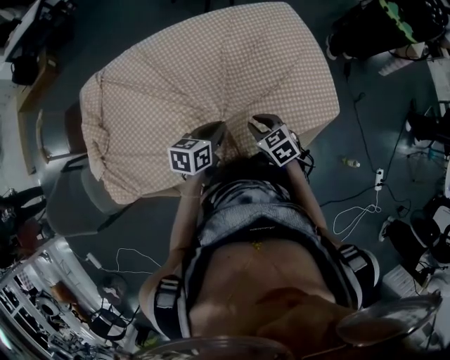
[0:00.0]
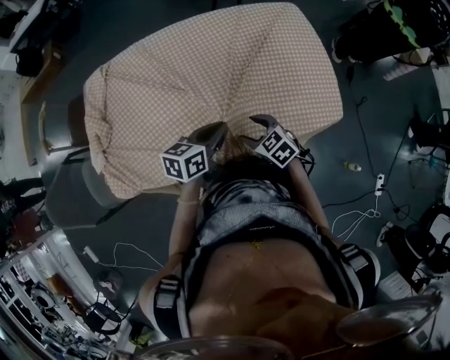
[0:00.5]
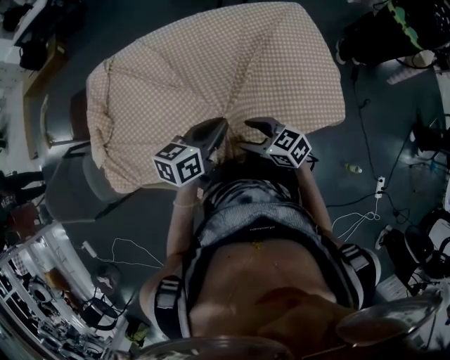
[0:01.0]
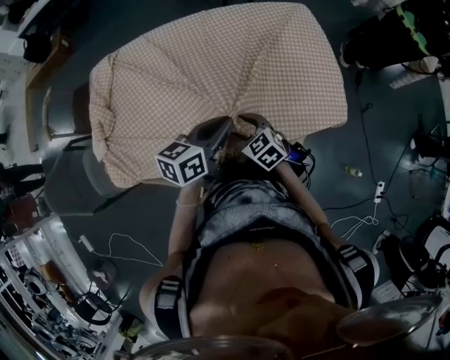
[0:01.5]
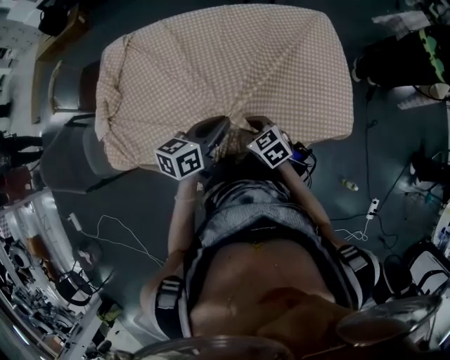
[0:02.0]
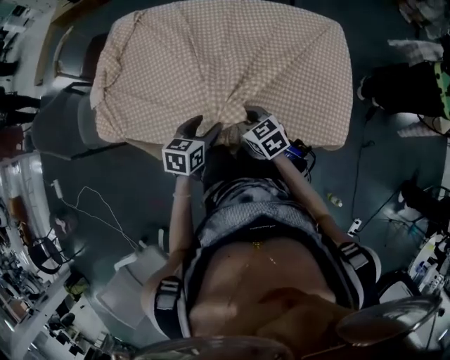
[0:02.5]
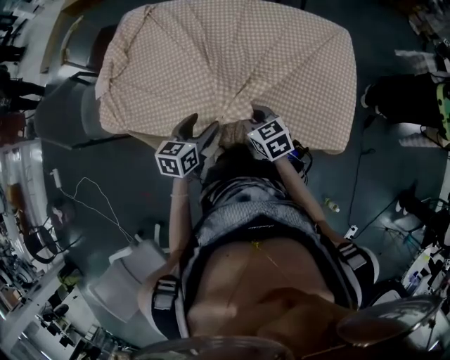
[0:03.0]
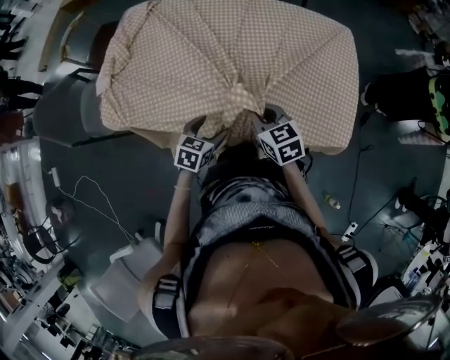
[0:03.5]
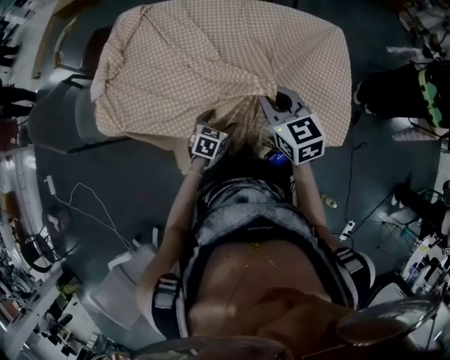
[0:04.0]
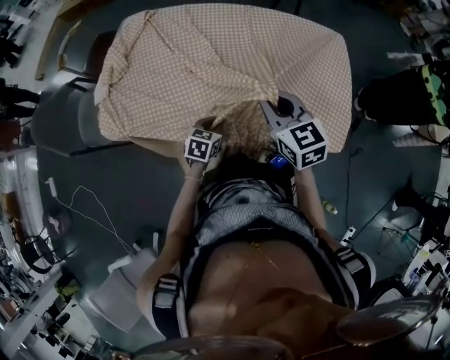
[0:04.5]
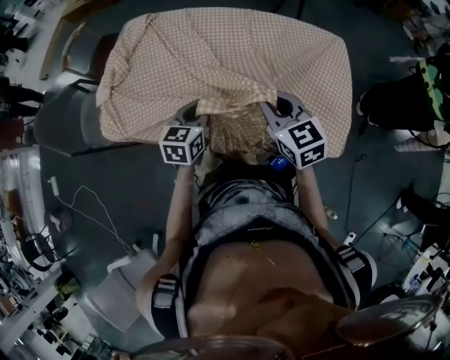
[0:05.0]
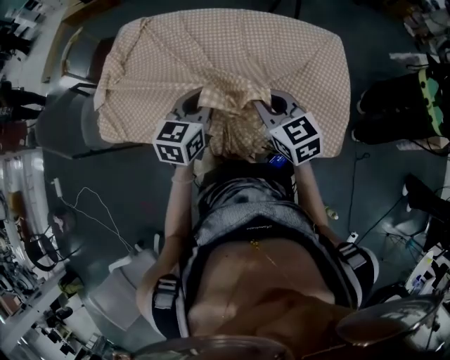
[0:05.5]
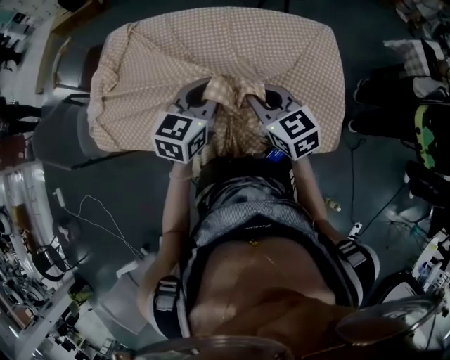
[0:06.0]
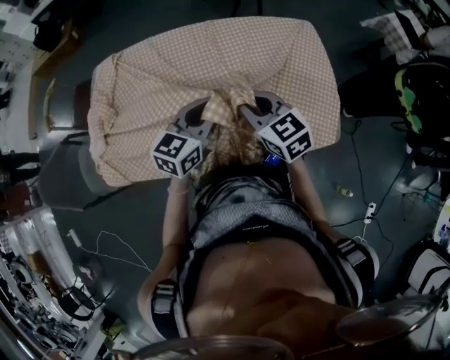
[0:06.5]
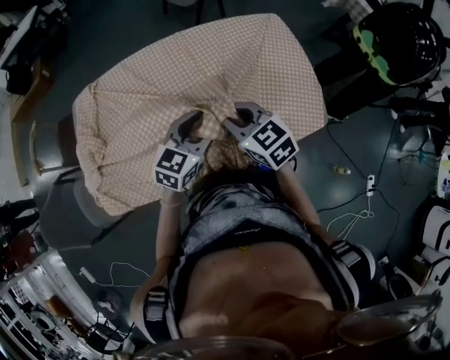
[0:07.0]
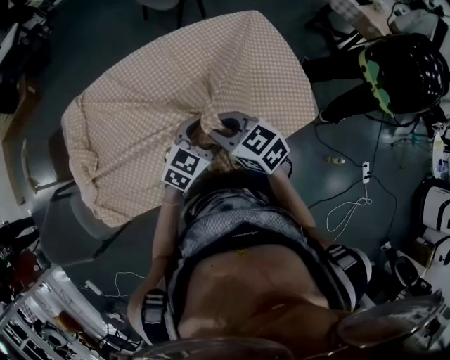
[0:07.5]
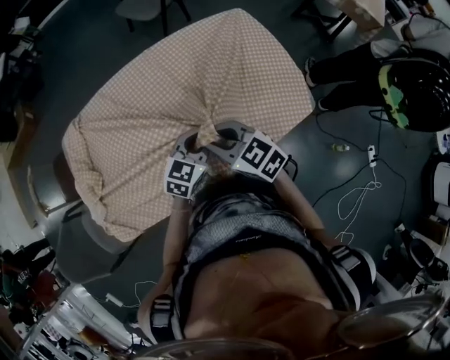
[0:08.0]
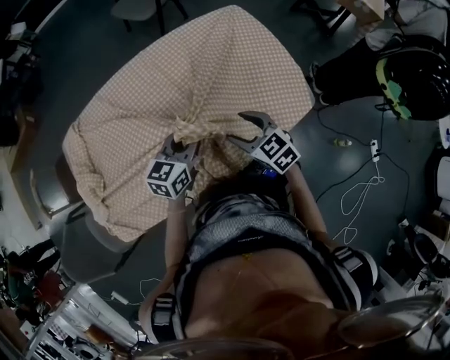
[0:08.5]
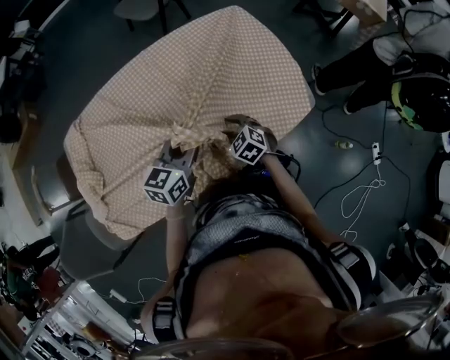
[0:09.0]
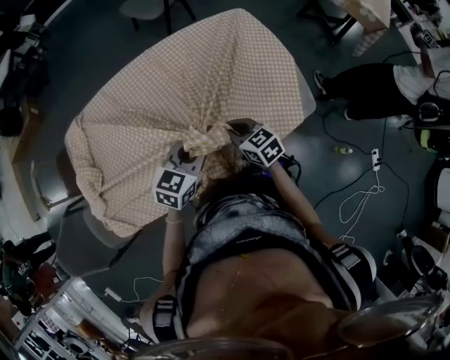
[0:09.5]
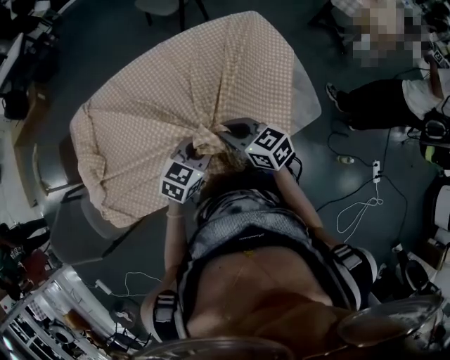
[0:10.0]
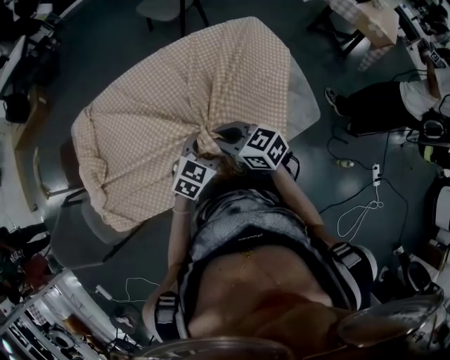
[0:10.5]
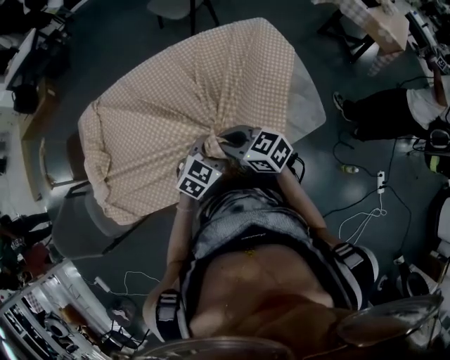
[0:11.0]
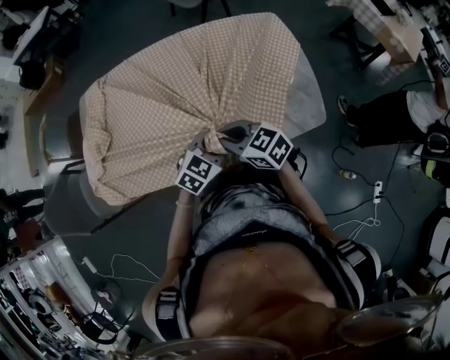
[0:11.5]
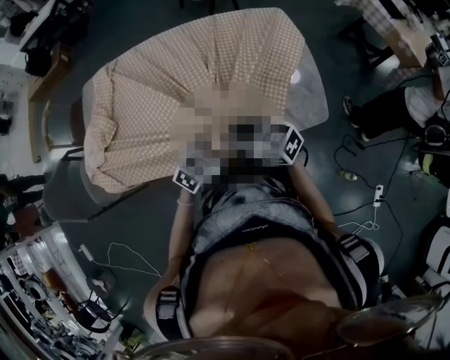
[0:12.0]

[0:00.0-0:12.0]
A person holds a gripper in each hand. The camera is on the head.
0:00.0 to 0:02.0: The left gripper goes about 5 cm upward; the right gripper travels to the left by about 5 cm, and opens, then closes once more.
0:02.0 to 0:04.0: The left gripper heads downward, covering some 20 cm, changes its angle by roughly 40 degrees, and opens up, while the right gripper travels upward by some 15 cm.
0:04.0 to 0:06.0: The left gripper is displaced upward and forward by some 30 cm, rotates about 30 degrees, and closes.
0:06.0 to 0:08.0: The left gripper shifts roughly 10 cm downward, changes its angle by approximately 40 degrees, and opens and closes again. Meanwhile the right gripper goes some 5 cm to the left.
0:08.0 to 0:10.0: The right gripper heads to the right, covering roughly 5 cm, goes downward and returns, approximately 20 cm each way, and opens, then closes once more.
0:10.0 to 0:12.0: The left gripper moves some 10 cm, and opens and closes again; the right gripper ends up approximately 10 cm from where it was, and turns by roughly 30 degrees.

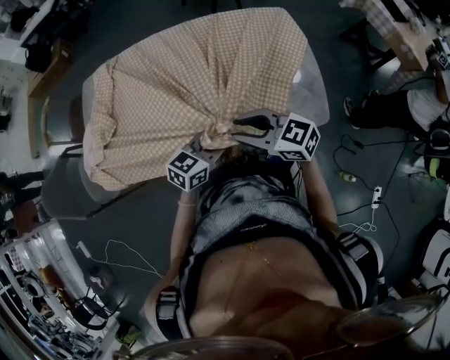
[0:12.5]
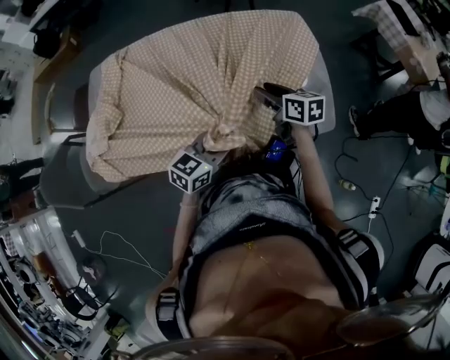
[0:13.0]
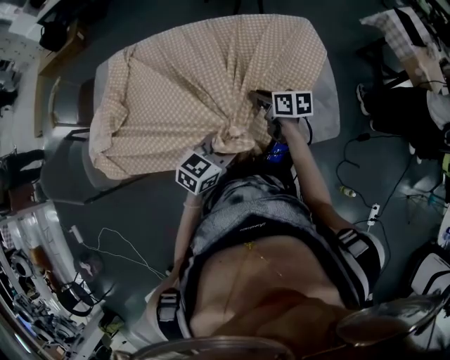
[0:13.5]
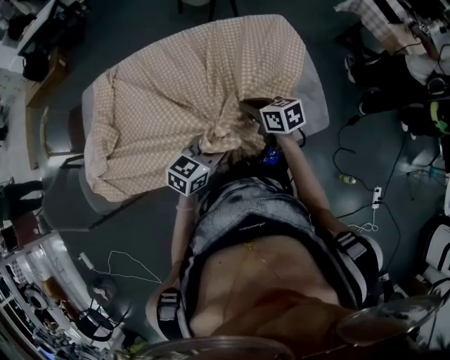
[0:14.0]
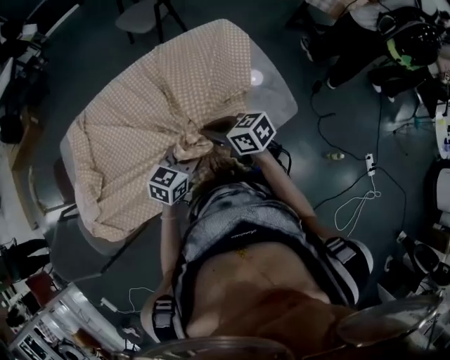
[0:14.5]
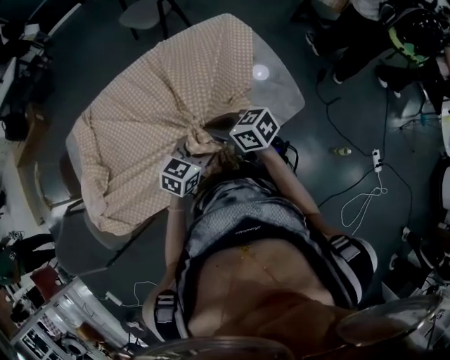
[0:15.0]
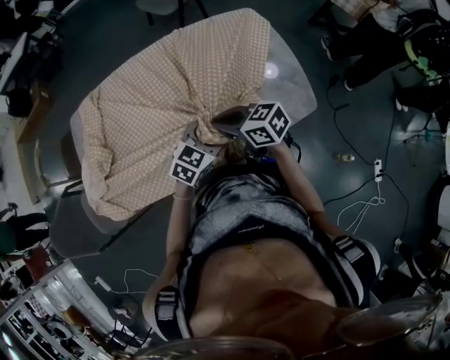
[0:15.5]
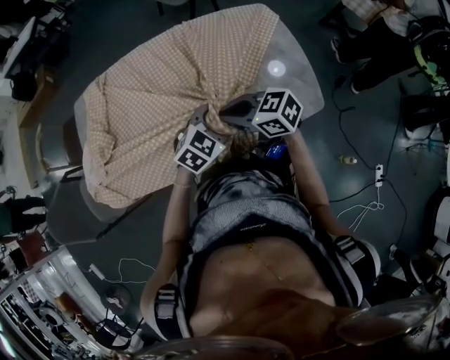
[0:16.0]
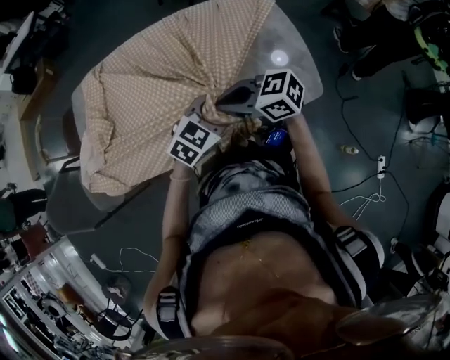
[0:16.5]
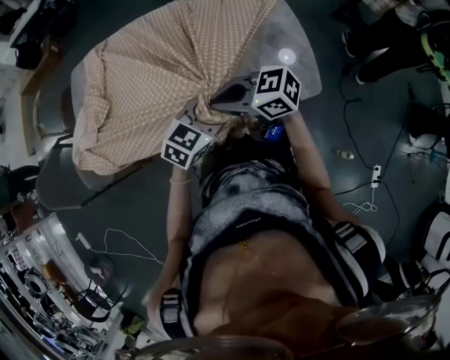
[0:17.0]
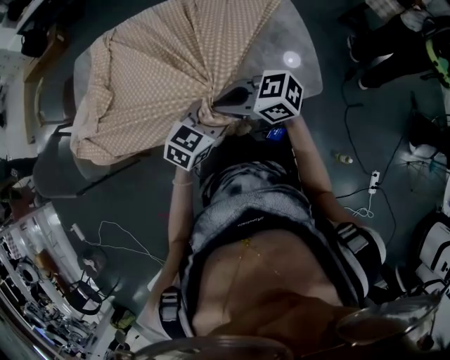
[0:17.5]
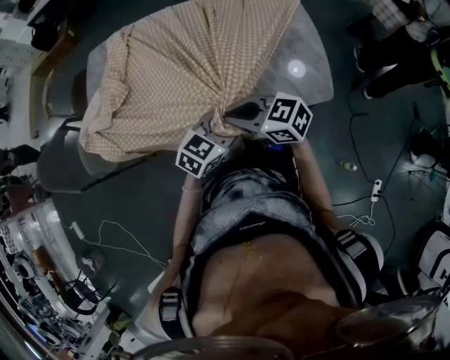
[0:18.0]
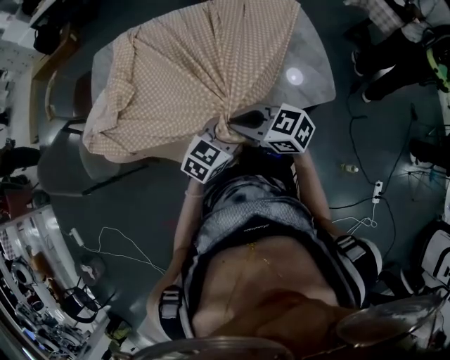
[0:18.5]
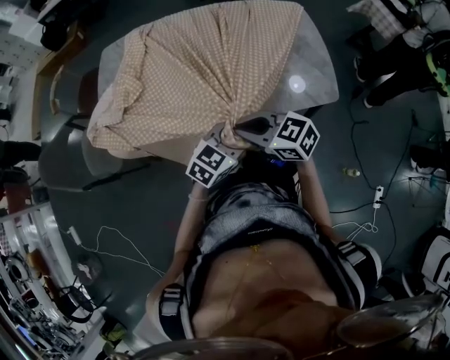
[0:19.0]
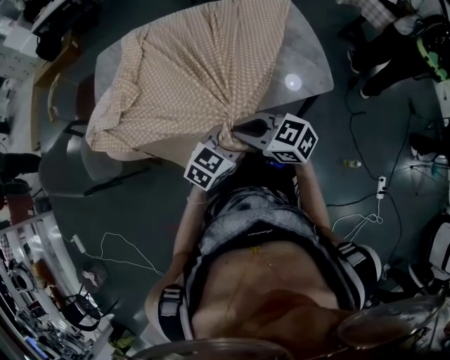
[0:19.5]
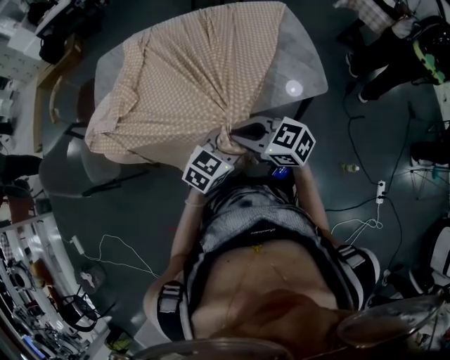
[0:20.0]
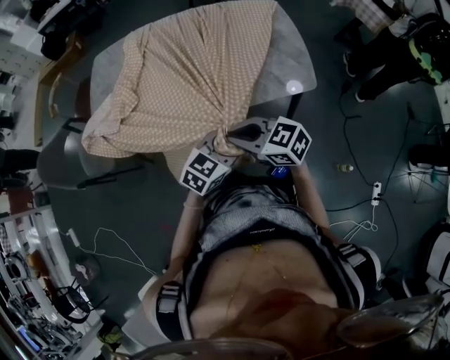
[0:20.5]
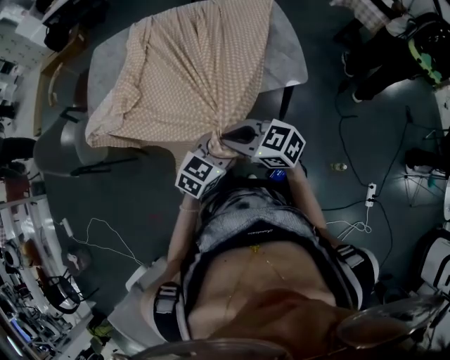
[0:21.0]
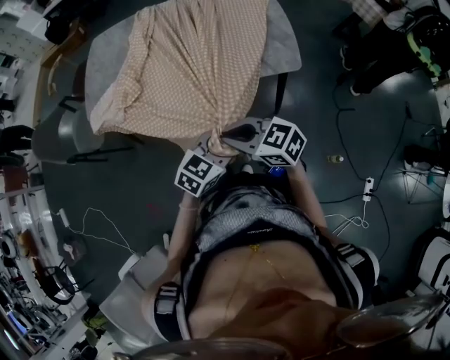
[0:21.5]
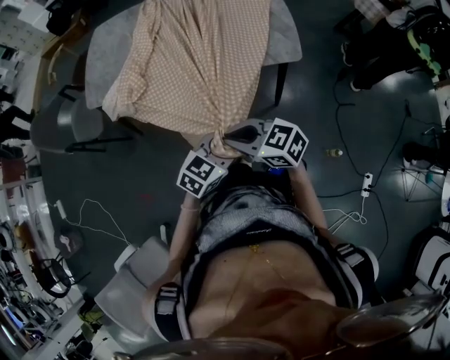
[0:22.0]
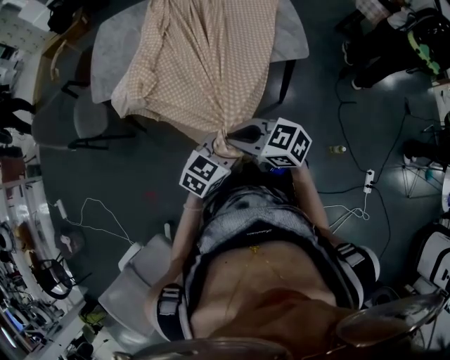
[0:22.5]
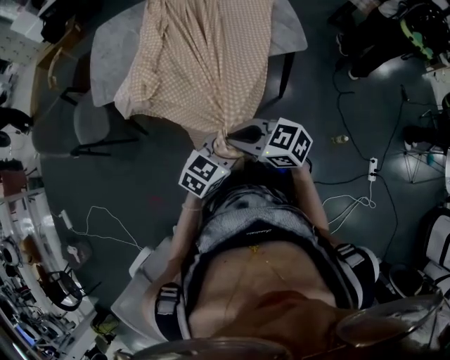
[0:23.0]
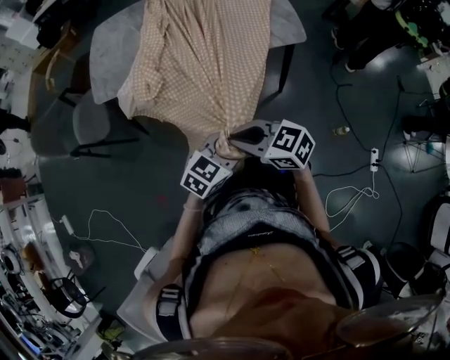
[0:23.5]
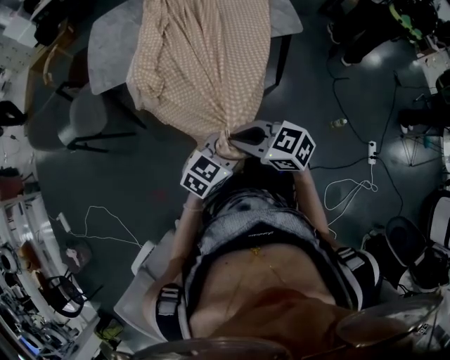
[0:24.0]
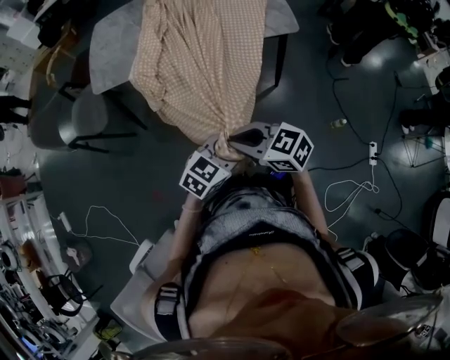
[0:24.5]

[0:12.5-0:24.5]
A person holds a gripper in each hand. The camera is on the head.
0:12.5 to 0:14.5: The right gripper turns by roughly 30 degrees.
0:14.5 to 0:16.5: The left gripper shifts by some 5 cm. Meanwhile the right gripper moves some 10 cm, and changes its angle by about 30 degrees.
0:16.5 to 0:18.5: The right gripper shifts by approximately 15 cm, while the left gripper ends up roughly 15 cm from where it was.
0:18.5 to 0:20.5: The left gripper moves some 15 cm, while the right gripper changes place by some 15 cm.
0:20.5 to 0:22.5: The left gripper moves approximately 20 cm, while the right gripper ends up approximately 20 cm from where it was.
0:22.5 to 0:24.5: The right gripper ends up some 15 cm from where it was, while the left gripper ends up roughly 15 cm from where it was.

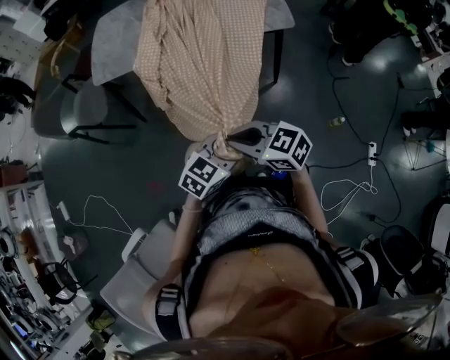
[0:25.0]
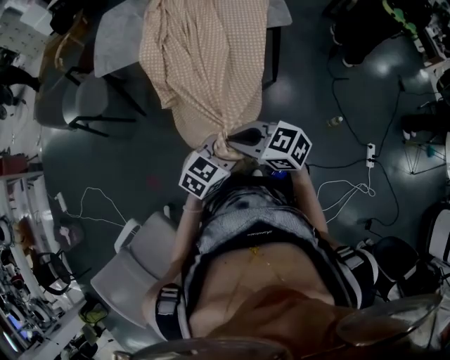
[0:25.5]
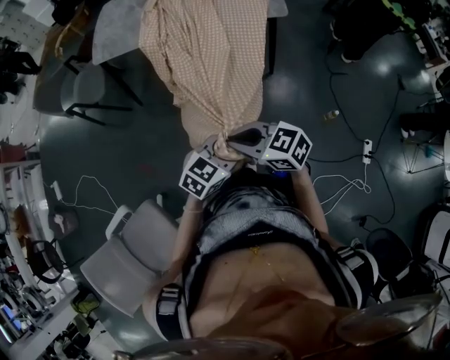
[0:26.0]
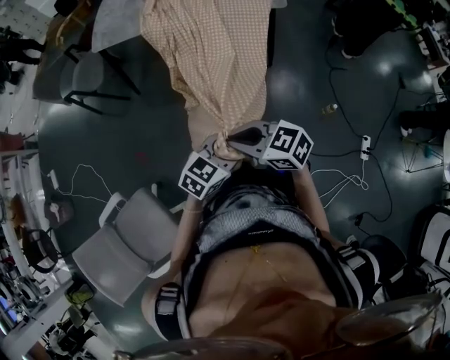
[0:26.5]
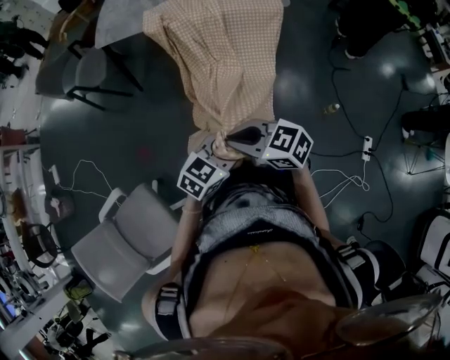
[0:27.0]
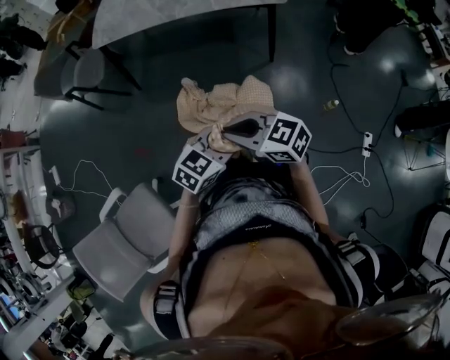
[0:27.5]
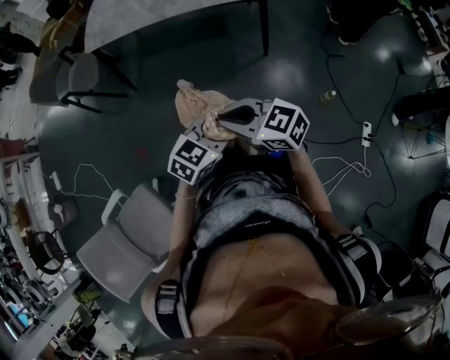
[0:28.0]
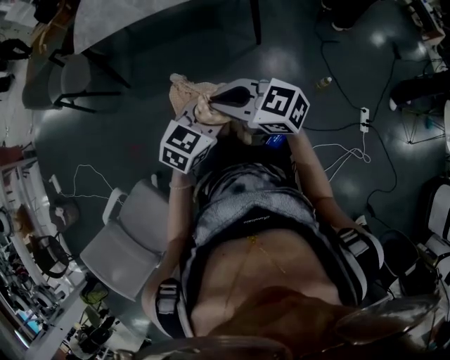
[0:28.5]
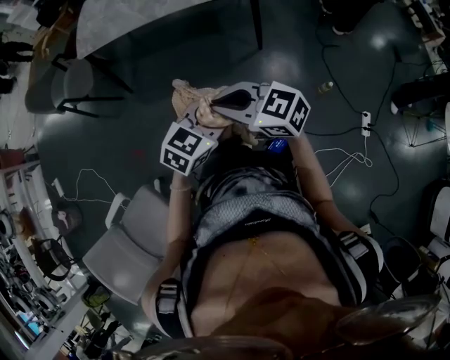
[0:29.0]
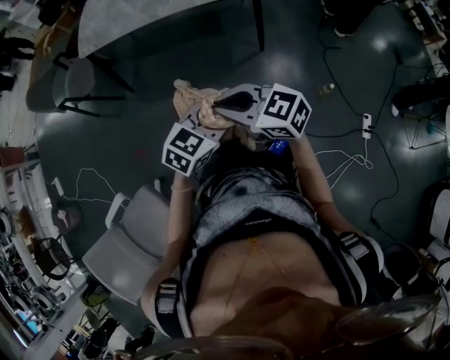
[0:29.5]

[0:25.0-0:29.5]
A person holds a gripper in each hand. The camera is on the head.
0:25.0 to 0:27.0: The right gripper changes place by roughly 20 cm; the left gripper ends up some 15 cm from where it was.
0:27.0 to 0:29.5: The left gripper ends up about 5 cm from where it was, while the right gripper ends up about 10 cm from where it was.
